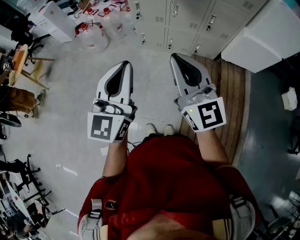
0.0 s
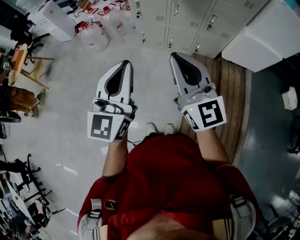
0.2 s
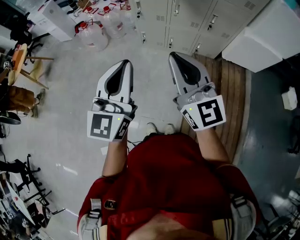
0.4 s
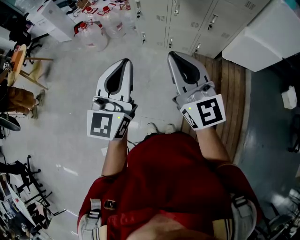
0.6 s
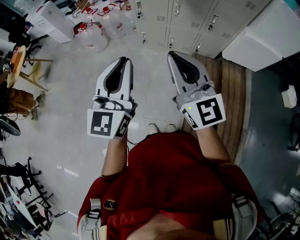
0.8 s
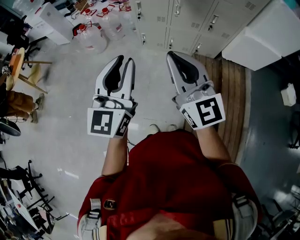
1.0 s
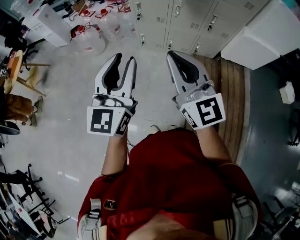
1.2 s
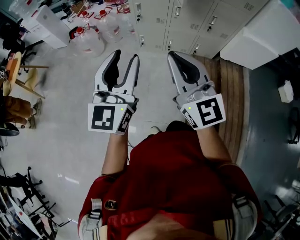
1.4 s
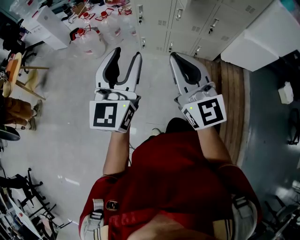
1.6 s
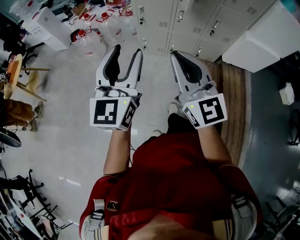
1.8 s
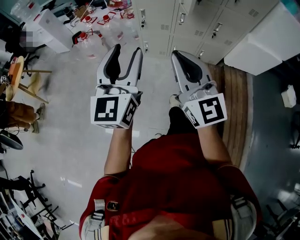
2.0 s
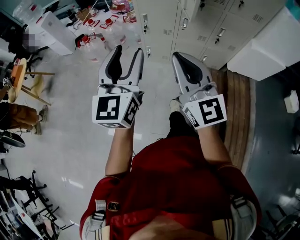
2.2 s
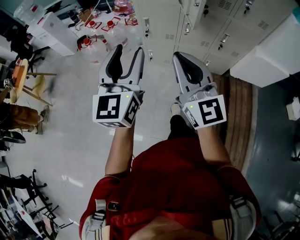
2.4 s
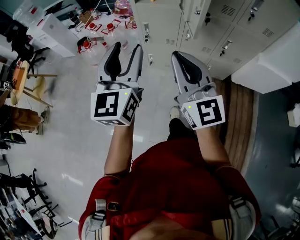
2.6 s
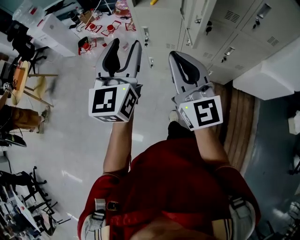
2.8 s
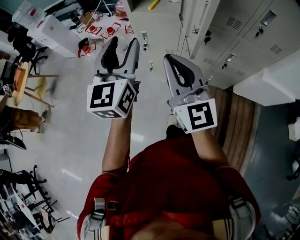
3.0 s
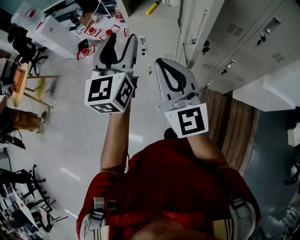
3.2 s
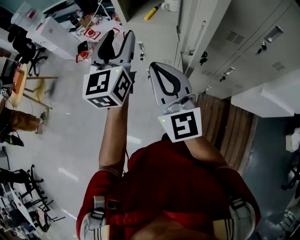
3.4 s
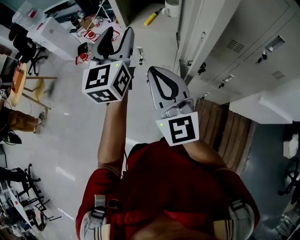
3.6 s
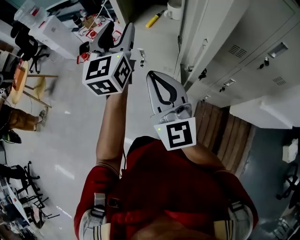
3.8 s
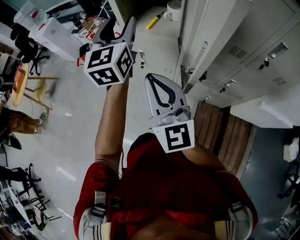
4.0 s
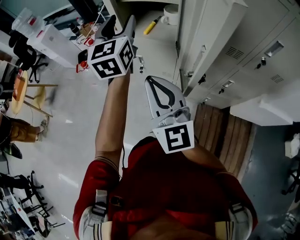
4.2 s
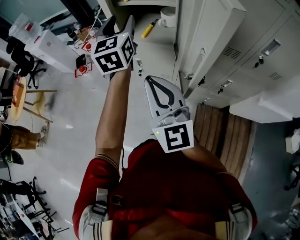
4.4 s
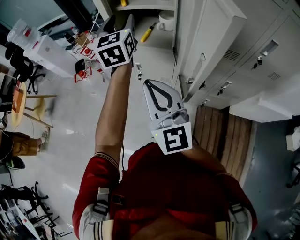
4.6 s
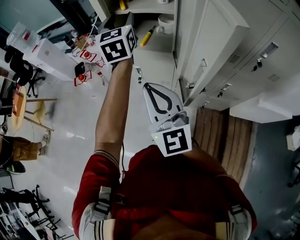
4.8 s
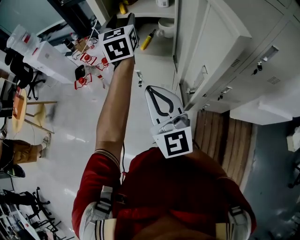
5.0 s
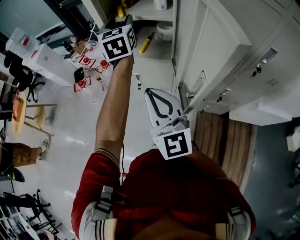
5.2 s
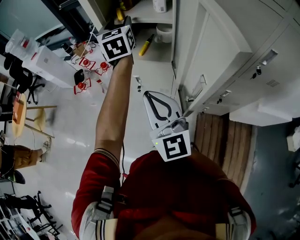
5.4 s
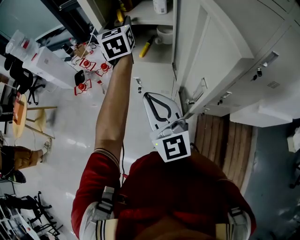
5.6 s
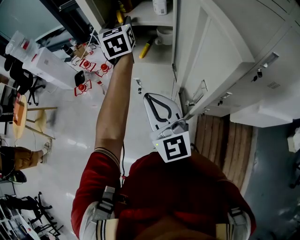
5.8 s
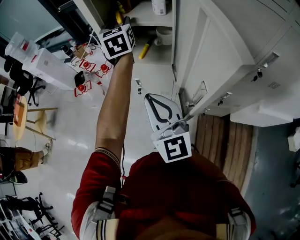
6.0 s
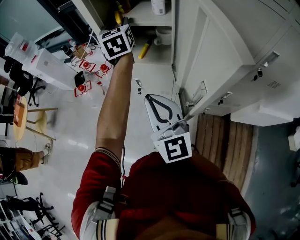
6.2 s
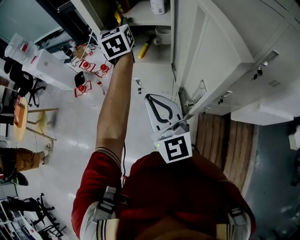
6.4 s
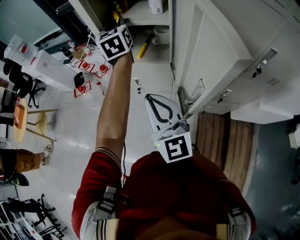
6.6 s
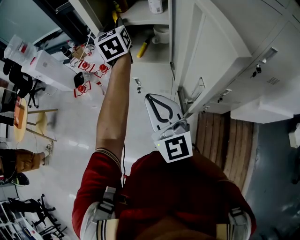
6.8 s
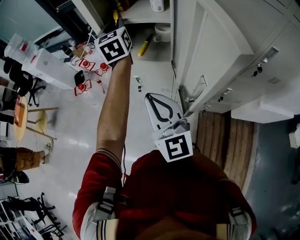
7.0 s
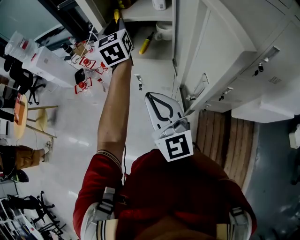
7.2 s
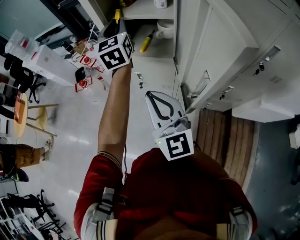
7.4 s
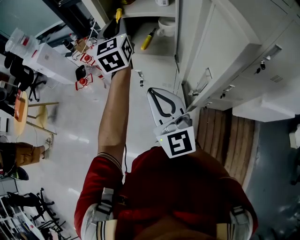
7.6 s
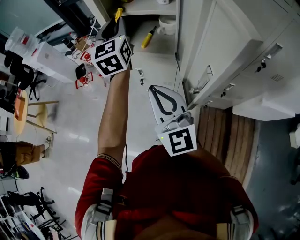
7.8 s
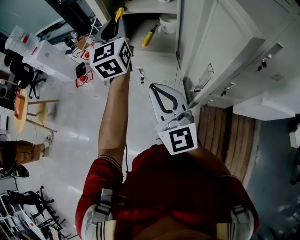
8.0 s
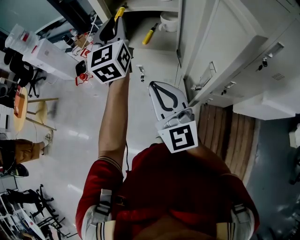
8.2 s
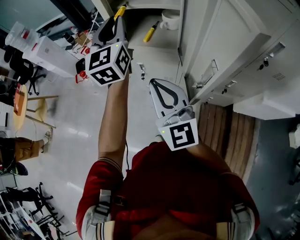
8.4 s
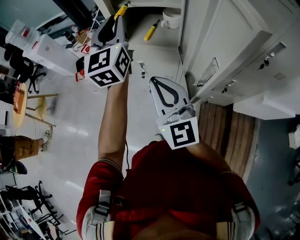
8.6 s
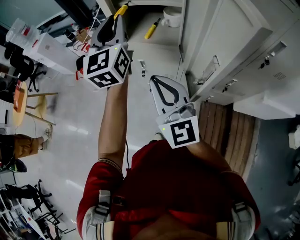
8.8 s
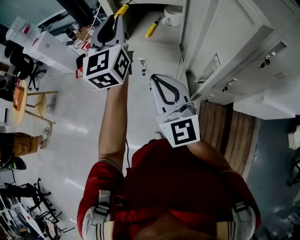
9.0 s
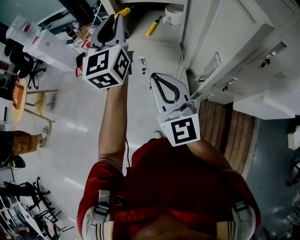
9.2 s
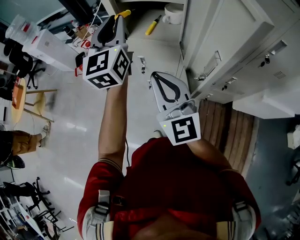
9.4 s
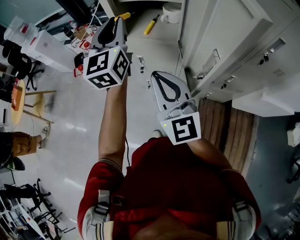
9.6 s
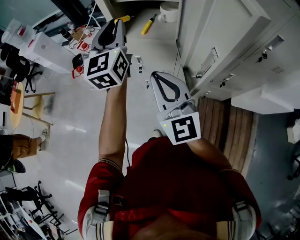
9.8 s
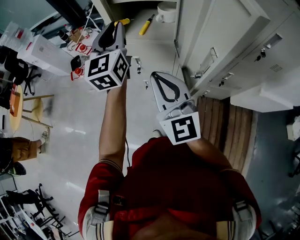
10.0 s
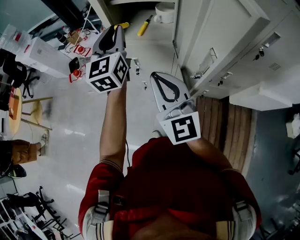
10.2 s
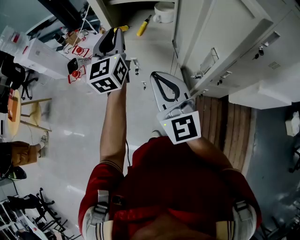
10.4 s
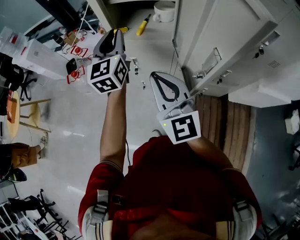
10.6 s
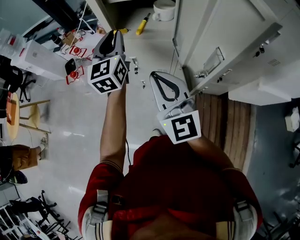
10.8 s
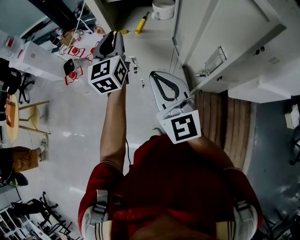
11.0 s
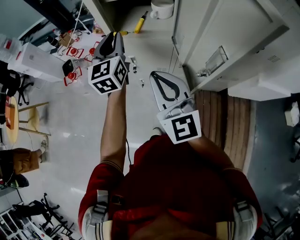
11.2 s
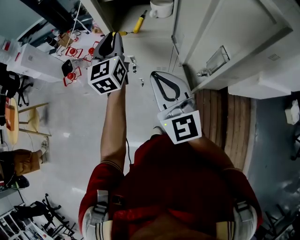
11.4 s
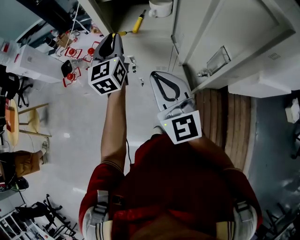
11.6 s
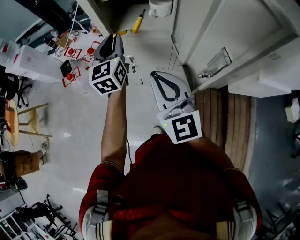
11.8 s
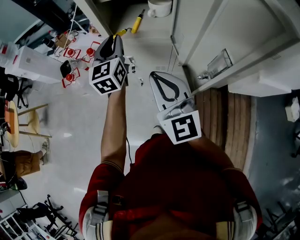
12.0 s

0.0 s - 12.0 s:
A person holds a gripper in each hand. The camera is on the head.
0.0 s - 1.6 s: The right gripper shifts about 10 cm to the left; the left gripper heads to the left and forward, covering roughly 10 cm, and opens up.
1.6 s - 3.0 s: Both grippers move forward, approximately 30 cm.
3.0 s - 4.4 s: The left gripper heads forward, covering some 25 cm. The right gripper moves forward, some 10 cm.
4.4 s - 6.0 s: The right gripper heads forward, covering about 5 cm; the left gripper heads forward, covering approximately 15 cm.
6.0 s - 7.6 s: The left gripper goes some 5 cm backward, and closes up.
7.6 s - 9.0 s: The left gripper travels backward by approximately 10 cm.
9.0 s - 10.4 s: The left gripper moves downward, about 10 cm.
10.4 s - 12.0 s: The left gripper goes roughly 10 cm downward.

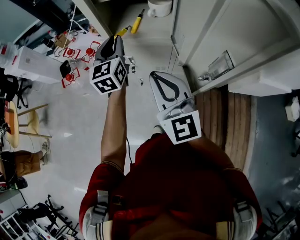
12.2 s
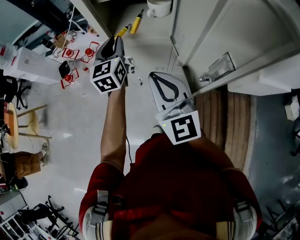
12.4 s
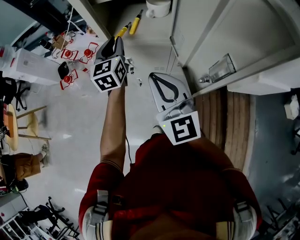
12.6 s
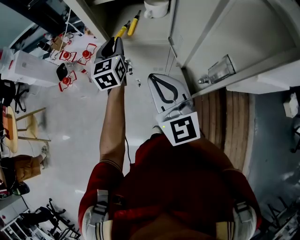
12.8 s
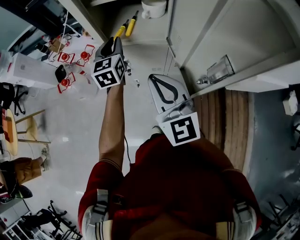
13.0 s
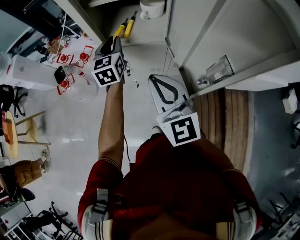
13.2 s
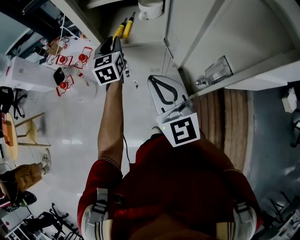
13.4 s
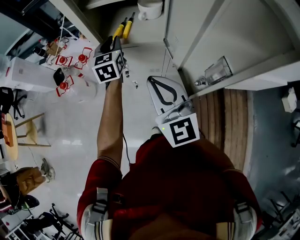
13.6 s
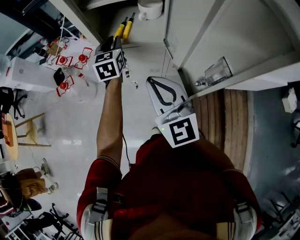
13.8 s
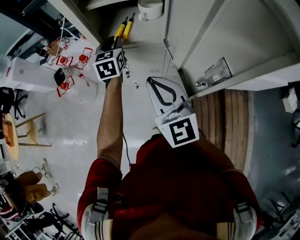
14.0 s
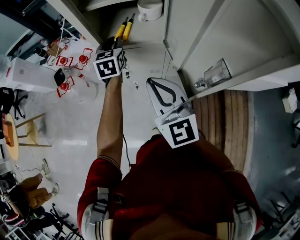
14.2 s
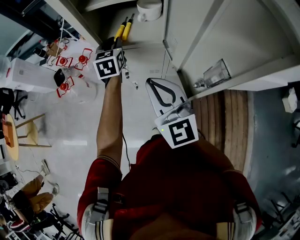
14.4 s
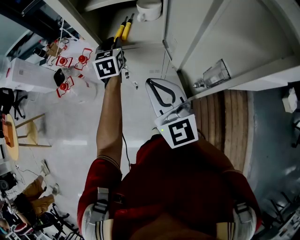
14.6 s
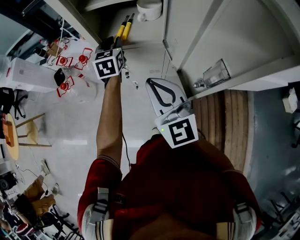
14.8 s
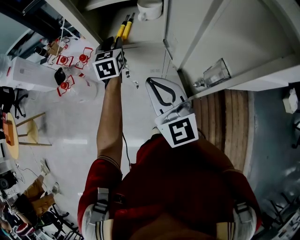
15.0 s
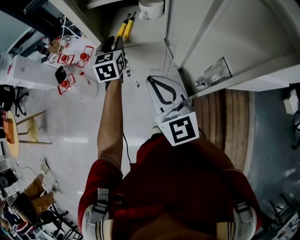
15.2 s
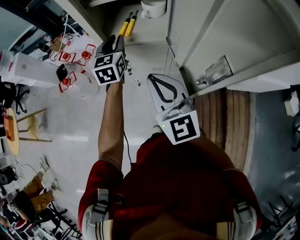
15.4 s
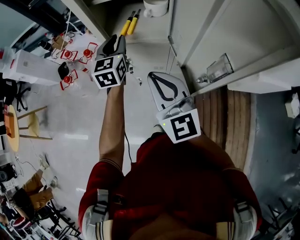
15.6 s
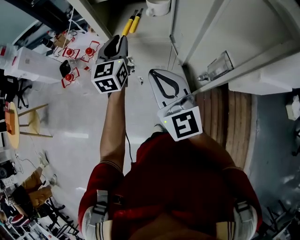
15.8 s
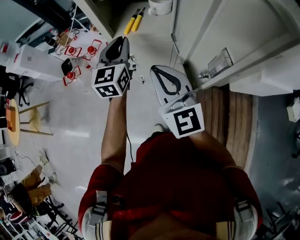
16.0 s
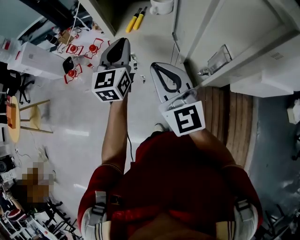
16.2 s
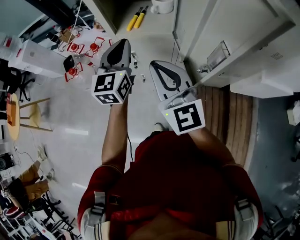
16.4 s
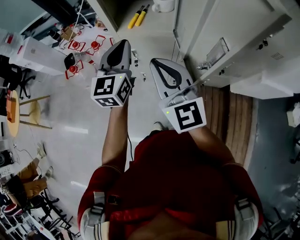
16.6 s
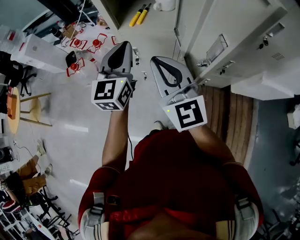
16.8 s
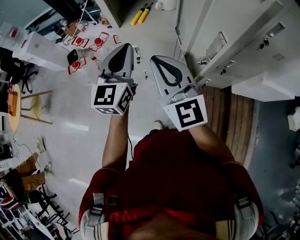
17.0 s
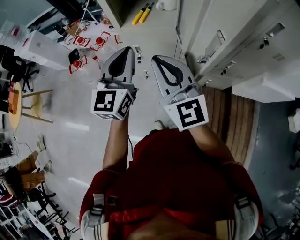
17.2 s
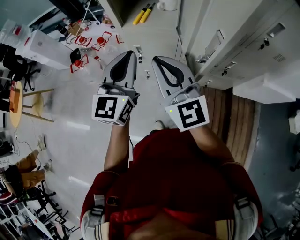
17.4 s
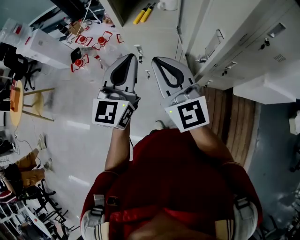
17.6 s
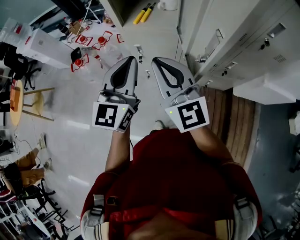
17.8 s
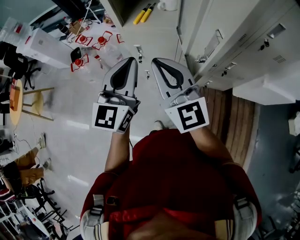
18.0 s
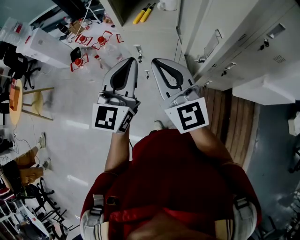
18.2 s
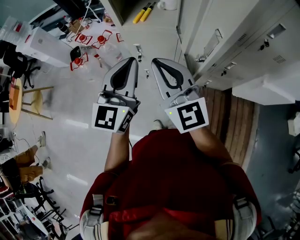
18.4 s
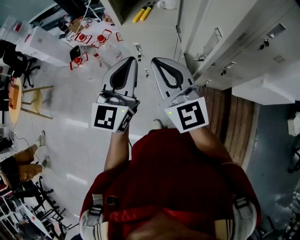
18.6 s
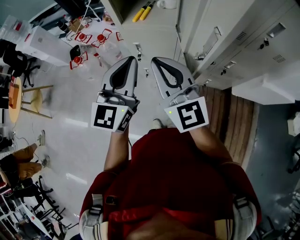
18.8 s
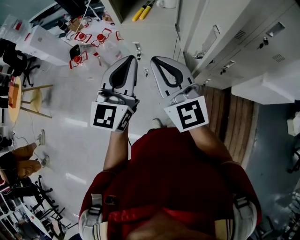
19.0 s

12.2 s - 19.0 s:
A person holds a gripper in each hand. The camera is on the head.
12.2 s - 13.6 s: The left gripper heads forward and downward, covering roughly 10 cm.
13.6 s - 15.0 s: The grippers stay close to where they were, moving slightly.
15.0 s - 16.2 s: The left gripper is displaced backward and upward by approximately 15 cm.
16.2 s - 17.6 s: The left gripper shifts some 15 cm backward.
17.6 s - 19.0 s: The grippers move only a little.

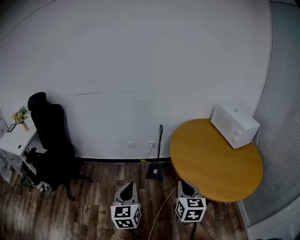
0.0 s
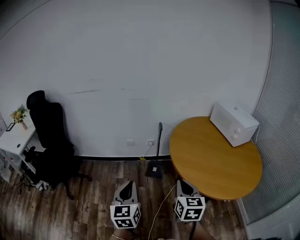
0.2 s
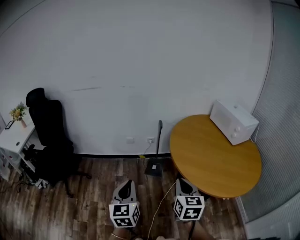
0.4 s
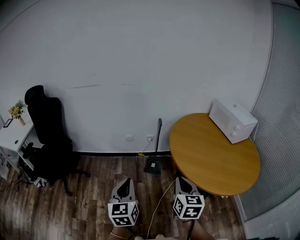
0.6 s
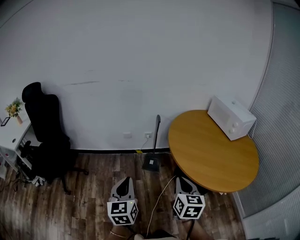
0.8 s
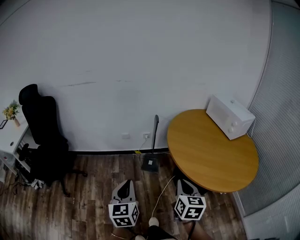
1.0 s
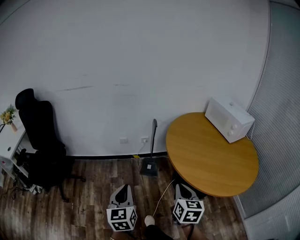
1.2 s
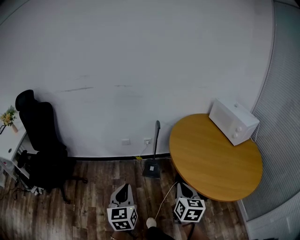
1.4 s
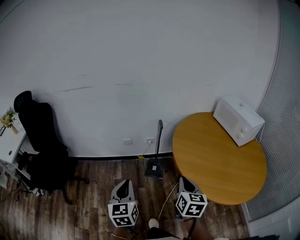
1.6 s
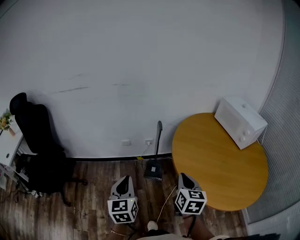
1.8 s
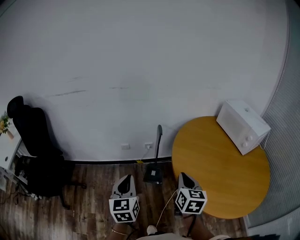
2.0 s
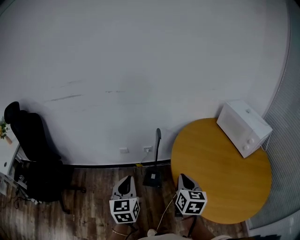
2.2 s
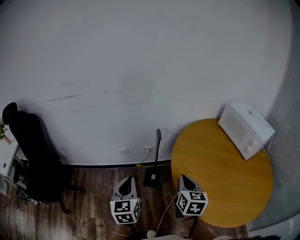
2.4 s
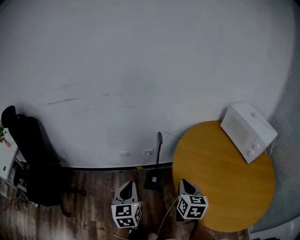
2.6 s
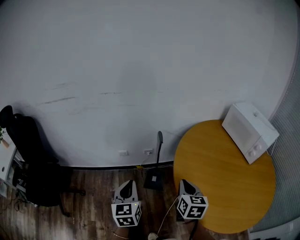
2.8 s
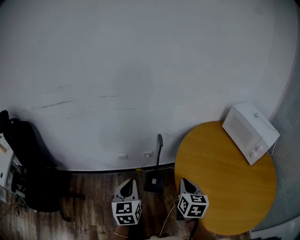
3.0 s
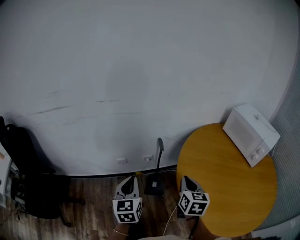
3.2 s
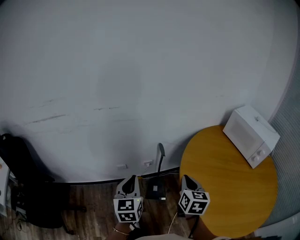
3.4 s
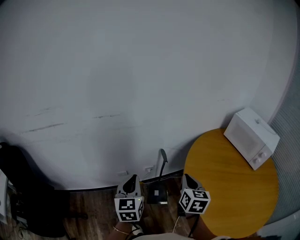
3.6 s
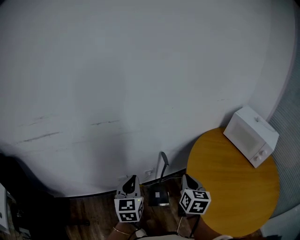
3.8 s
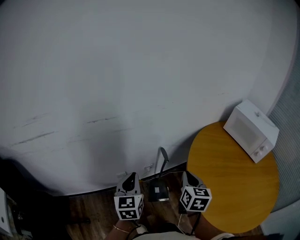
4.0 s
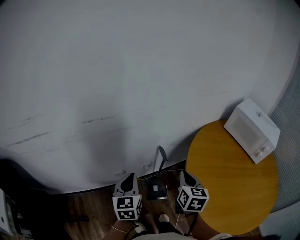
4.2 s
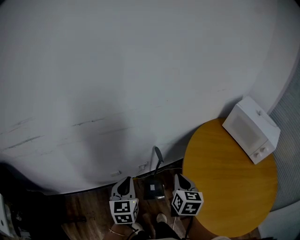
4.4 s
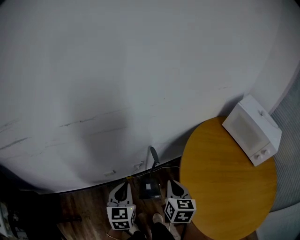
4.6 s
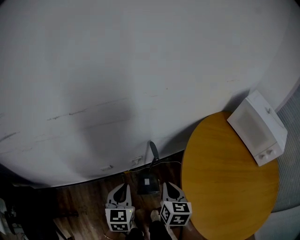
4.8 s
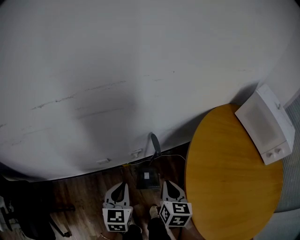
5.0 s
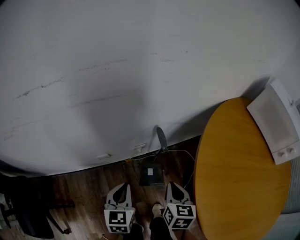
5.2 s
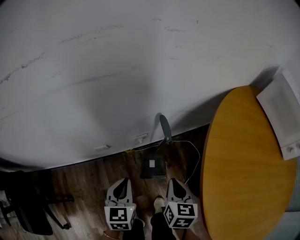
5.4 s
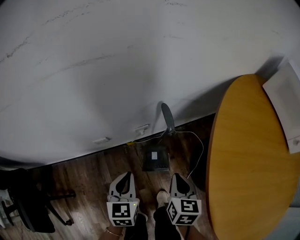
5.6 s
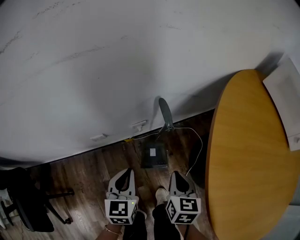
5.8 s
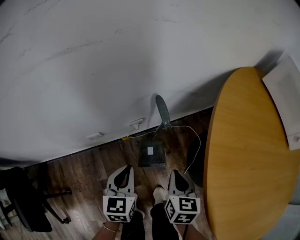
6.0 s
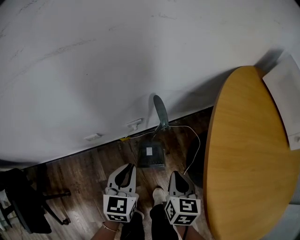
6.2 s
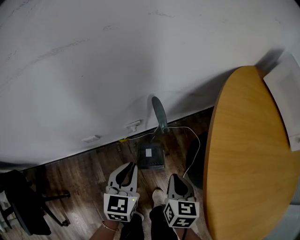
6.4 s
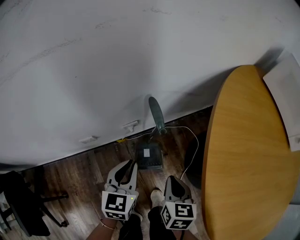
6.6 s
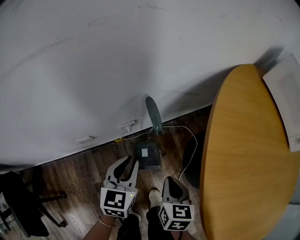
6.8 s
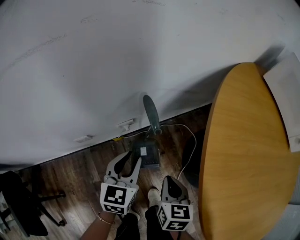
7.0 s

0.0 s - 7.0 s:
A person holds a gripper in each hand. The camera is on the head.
0.0 s - 1.4 s: The right gripper is displaced downward by roughly 5 cm. The left gripper shifts approximately 5 cm forward.
1.4 s - 2.8 s: The grippers both shift forward by approximately 25 cm.
2.8 s - 4.2 s: The right gripper is displaced forward and to the left by some 20 cm. The left gripper goes roughly 25 cm forward.
4.2 s - 5.6 s: The grippers both shift downward by about 30 cm.
5.6 s - 7.0 s: The left gripper is displaced forward and to the right by roughly 10 cm, and opens its fingers, while the right gripper changes place by some 5 cm.
